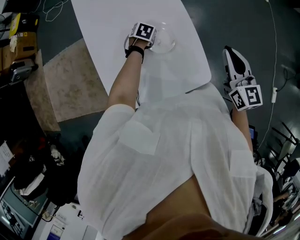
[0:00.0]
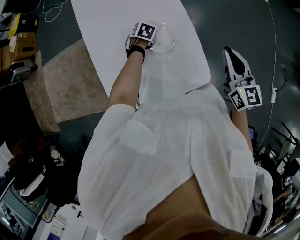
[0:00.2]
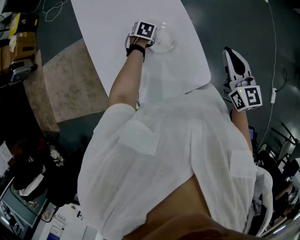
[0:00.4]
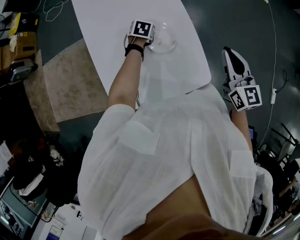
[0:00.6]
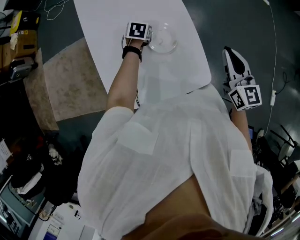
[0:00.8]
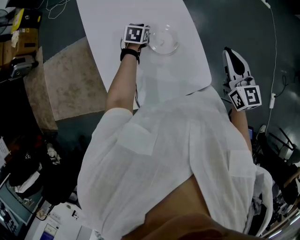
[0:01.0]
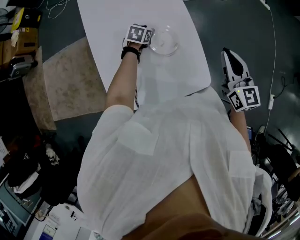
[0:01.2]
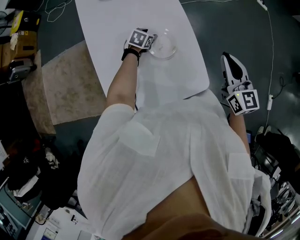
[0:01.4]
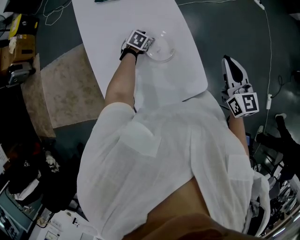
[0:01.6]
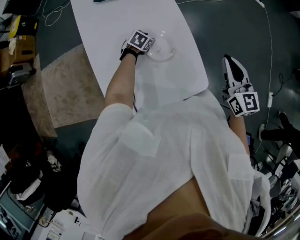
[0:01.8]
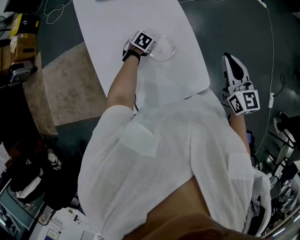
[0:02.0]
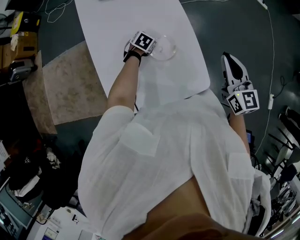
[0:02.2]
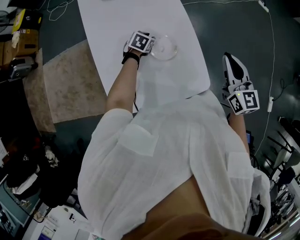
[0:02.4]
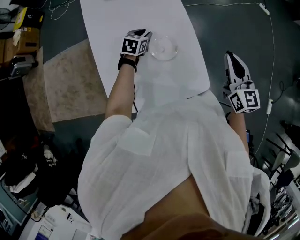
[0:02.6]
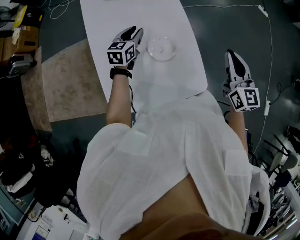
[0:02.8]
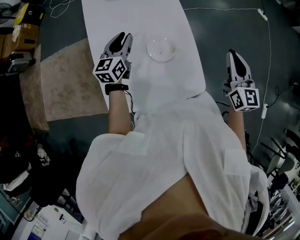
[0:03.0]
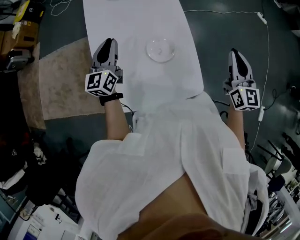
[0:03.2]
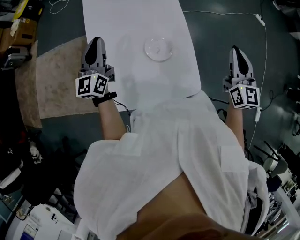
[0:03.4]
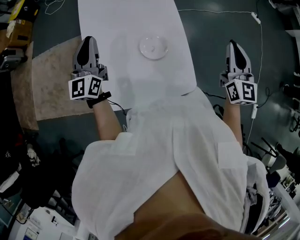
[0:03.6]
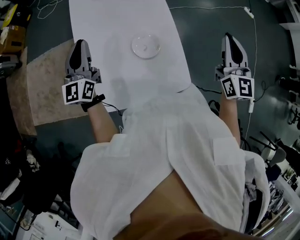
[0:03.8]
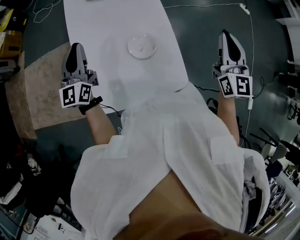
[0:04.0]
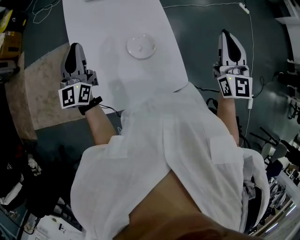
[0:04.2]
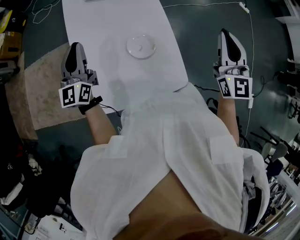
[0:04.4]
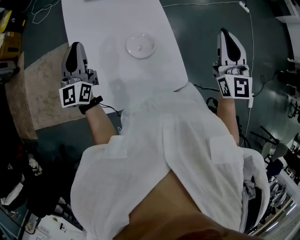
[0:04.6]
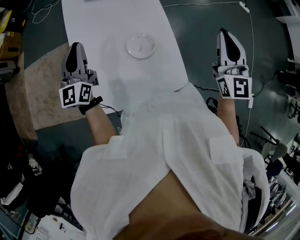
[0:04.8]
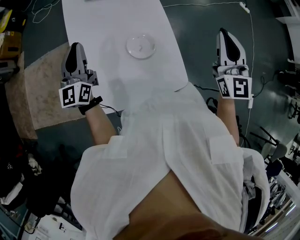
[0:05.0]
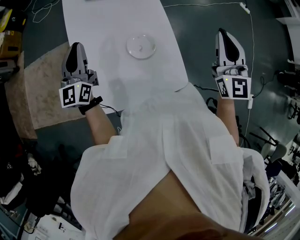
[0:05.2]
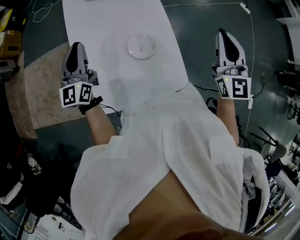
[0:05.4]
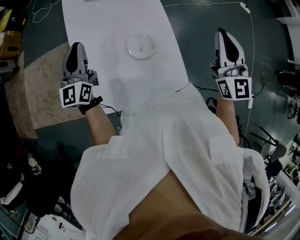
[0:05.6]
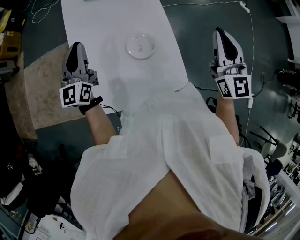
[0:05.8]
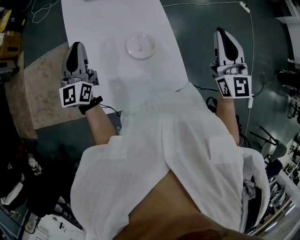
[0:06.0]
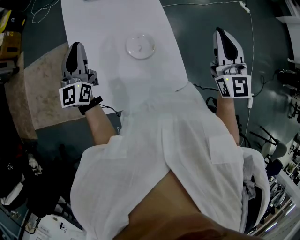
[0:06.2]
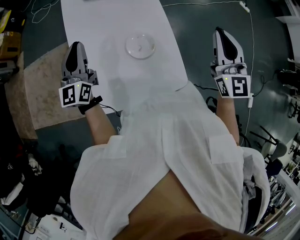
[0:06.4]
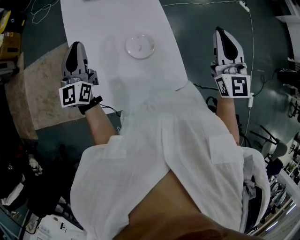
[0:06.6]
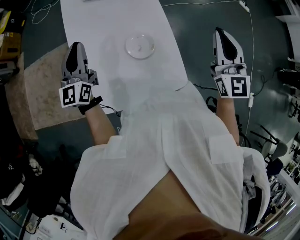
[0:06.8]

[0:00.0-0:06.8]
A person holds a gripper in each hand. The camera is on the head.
0:00.0 to 0:01.4: The left gripper opens its fingers.
0:01.4 to 0:02.8: The left gripper is displaced upward by approximately 15 cm, rotates roughly 30 degrees, and closes.
0:02.8 to 0:04.0: The left gripper heads upward, to the left and backward, covering approximately 25 cm, tips its fingers upward by about 30 degrees, and closes up; the right gripper heads upward, covering some 10 cm.
0:04.0 to 0:06.8: The grippers move only a little.

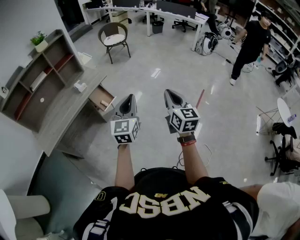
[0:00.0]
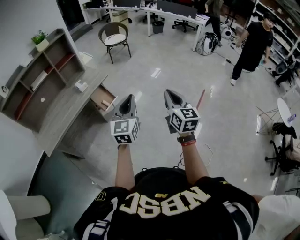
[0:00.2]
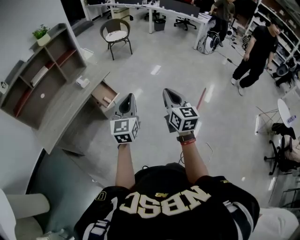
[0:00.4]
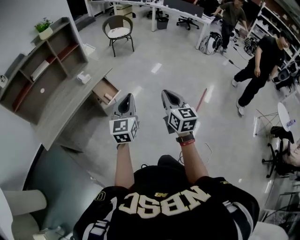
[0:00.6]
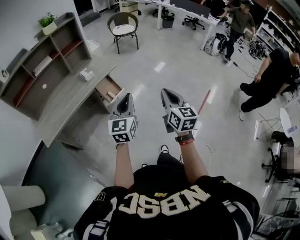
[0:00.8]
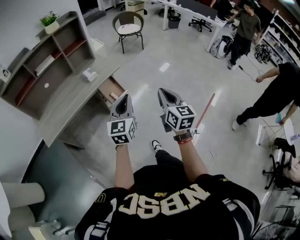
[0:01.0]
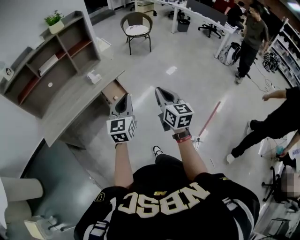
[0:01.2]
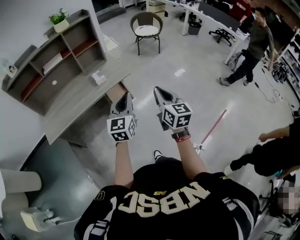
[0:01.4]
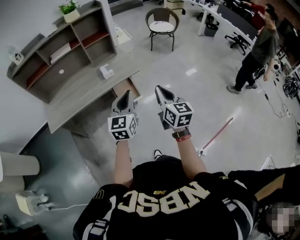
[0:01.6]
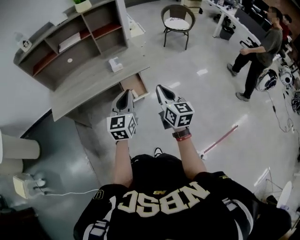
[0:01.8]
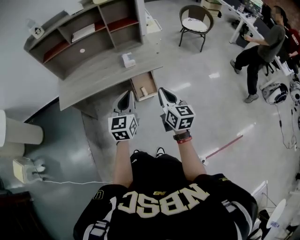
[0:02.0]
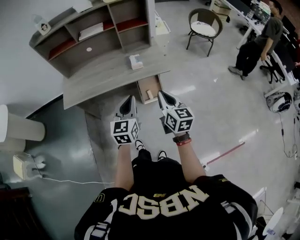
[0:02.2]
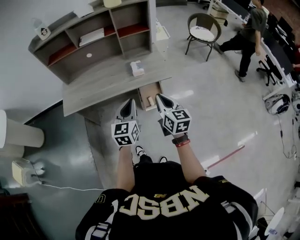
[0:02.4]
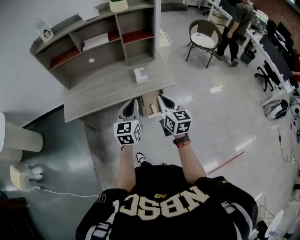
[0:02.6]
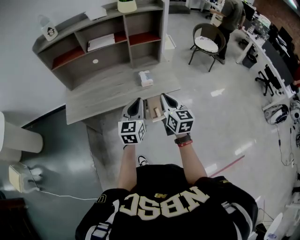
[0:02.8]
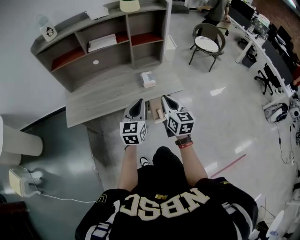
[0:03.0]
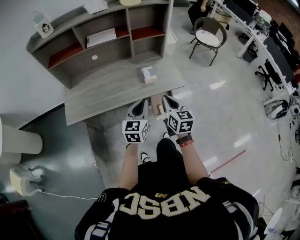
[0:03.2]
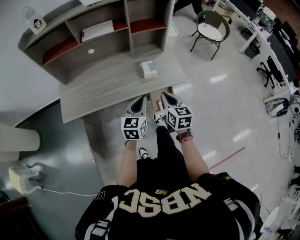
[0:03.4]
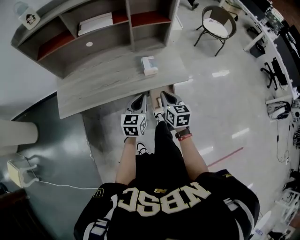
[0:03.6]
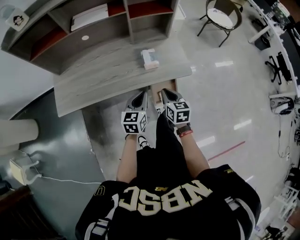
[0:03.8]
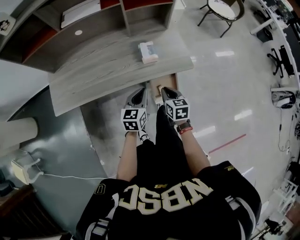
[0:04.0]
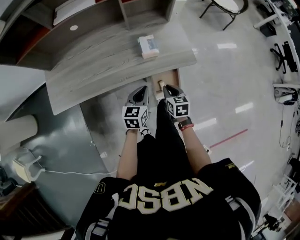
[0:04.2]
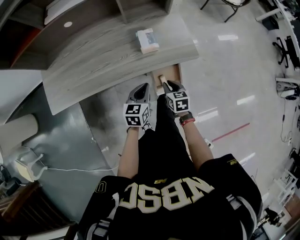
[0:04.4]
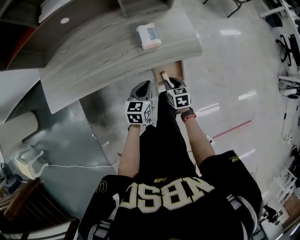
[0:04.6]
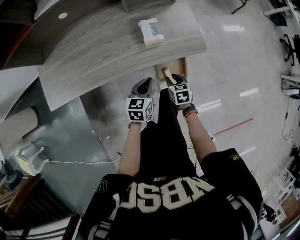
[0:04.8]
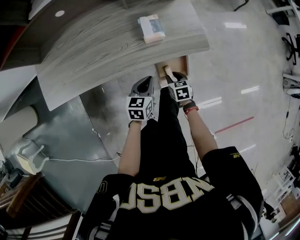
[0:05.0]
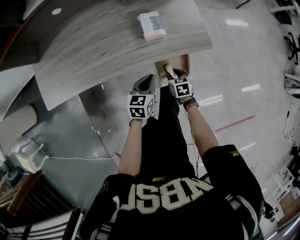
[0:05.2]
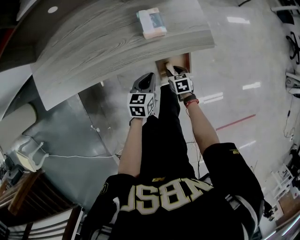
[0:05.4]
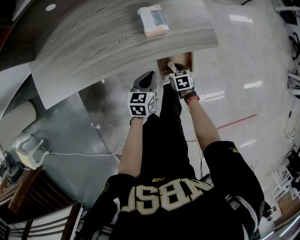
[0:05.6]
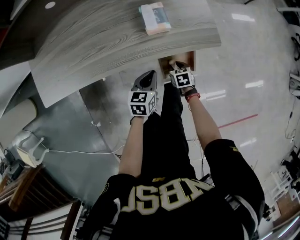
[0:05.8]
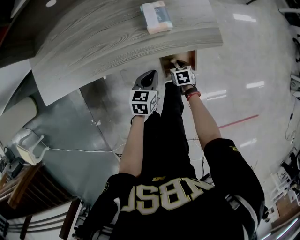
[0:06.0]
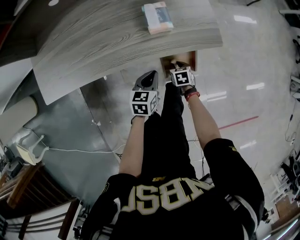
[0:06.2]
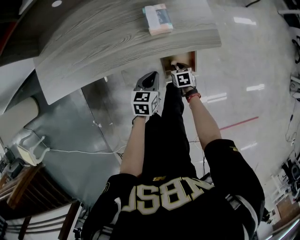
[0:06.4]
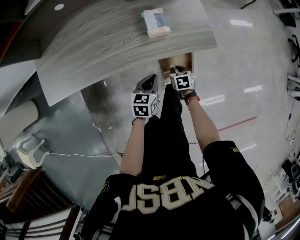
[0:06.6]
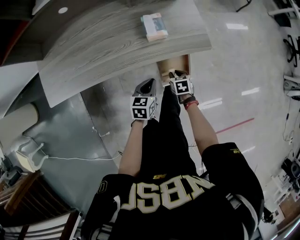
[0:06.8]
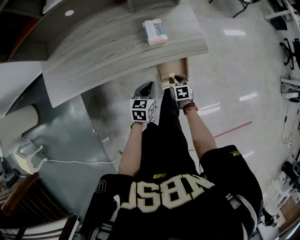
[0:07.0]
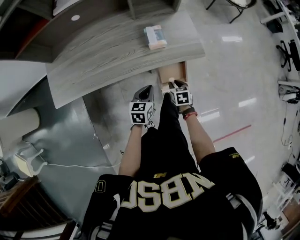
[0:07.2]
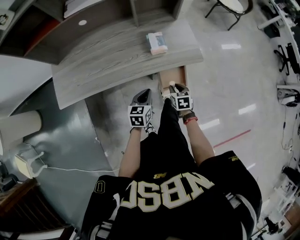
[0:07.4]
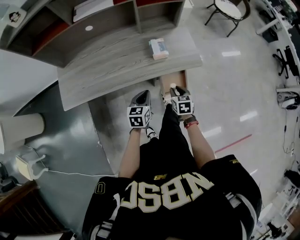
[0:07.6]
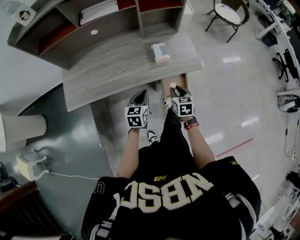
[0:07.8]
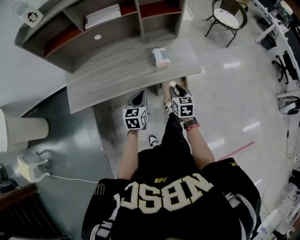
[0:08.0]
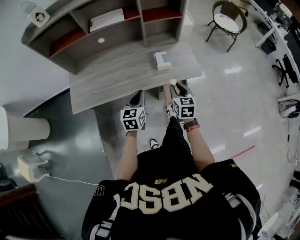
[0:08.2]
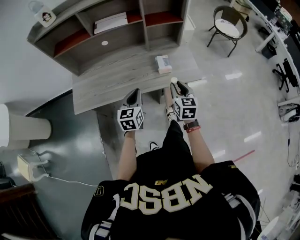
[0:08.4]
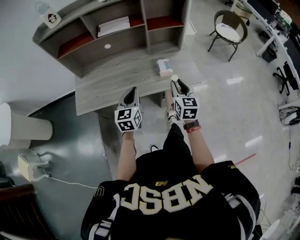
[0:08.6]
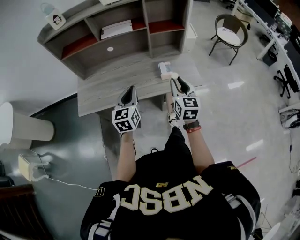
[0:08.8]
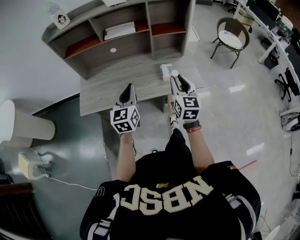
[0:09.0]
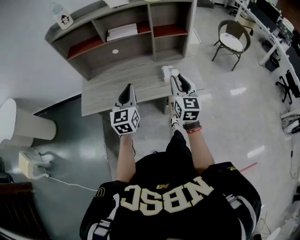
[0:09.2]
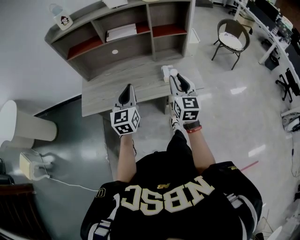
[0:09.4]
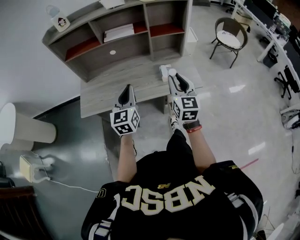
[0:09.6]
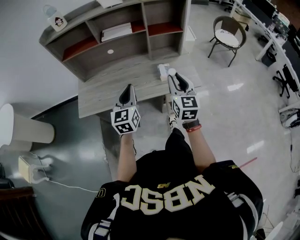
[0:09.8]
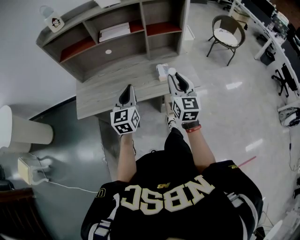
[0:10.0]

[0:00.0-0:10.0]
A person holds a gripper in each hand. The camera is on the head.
0:00.0 to 0:01.4: The two grippers go about 25 cm forward and to the left. The right gripper turns by about 20 degrees.
0:01.4 to 0:02.8: The grippers both shift forward and to the left by some 25 cm. The right gripper rotates some 20 degrees.
0:02.8 to 0:04.2: The right gripper travels downward by approximately 30 cm, and tips its fingers downward by some 30 degrees. The left gripper travels downward and forward by roughly 25 cm, and turns by some 20 degrees.
0:04.2 to 0:05.8: The left gripper shifts some 15 cm downward, while the right gripper is displaced downward by some 25 cm, turns by some 20 degrees, and opens.
0:05.8 to 0:07.2: The left gripper travels upward by about 5 cm, while the right gripper shifts approximately 15 cm upward.
0:07.2 to 0:08.6: The right gripper moves upward, about 35 cm, and tilts its fingers some 40 degrees upward; the left gripper heads upward and to the left, covering some 25 cm, and swivels roughly 30 degrees.
0:08.6 to 0:10.0: Both grippers travel together upward, roughly 10 cm.

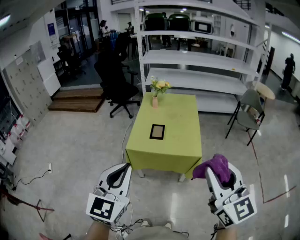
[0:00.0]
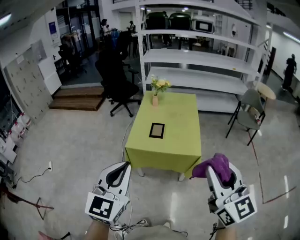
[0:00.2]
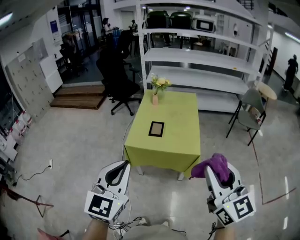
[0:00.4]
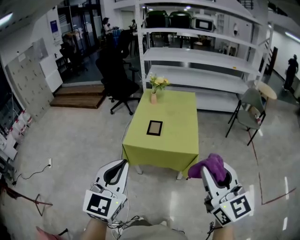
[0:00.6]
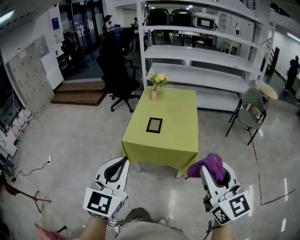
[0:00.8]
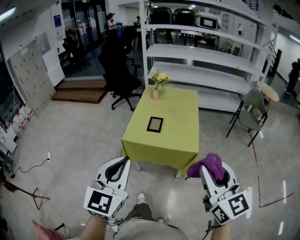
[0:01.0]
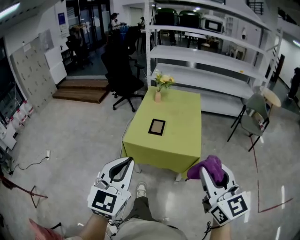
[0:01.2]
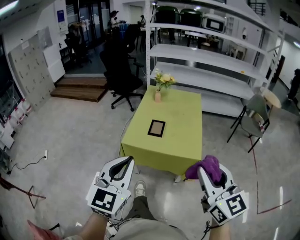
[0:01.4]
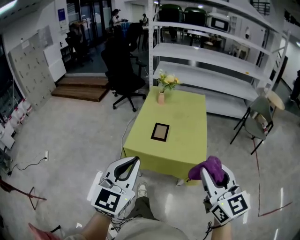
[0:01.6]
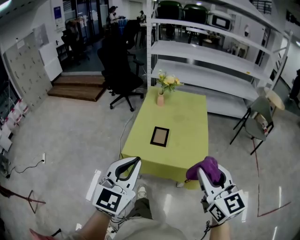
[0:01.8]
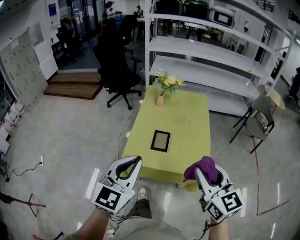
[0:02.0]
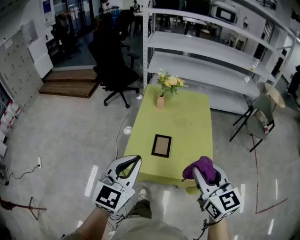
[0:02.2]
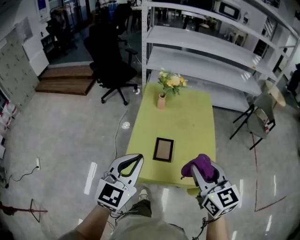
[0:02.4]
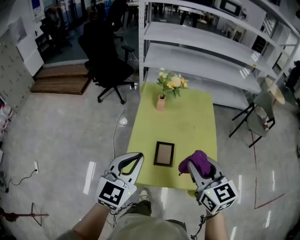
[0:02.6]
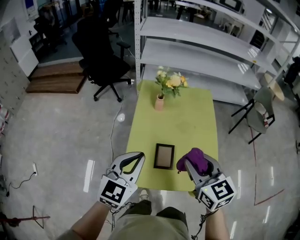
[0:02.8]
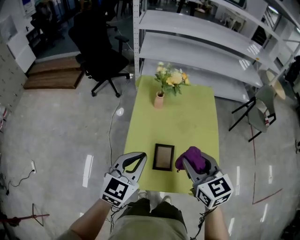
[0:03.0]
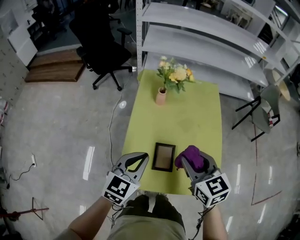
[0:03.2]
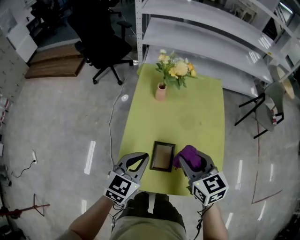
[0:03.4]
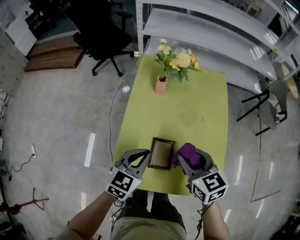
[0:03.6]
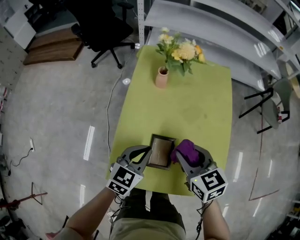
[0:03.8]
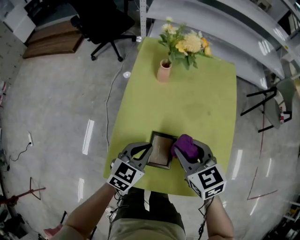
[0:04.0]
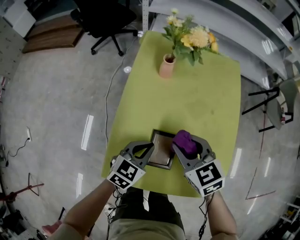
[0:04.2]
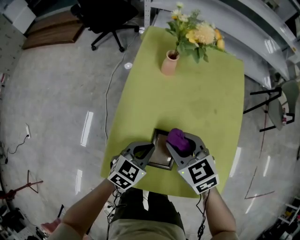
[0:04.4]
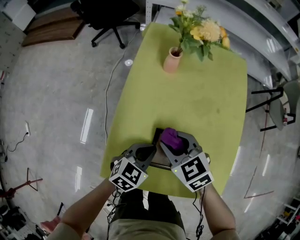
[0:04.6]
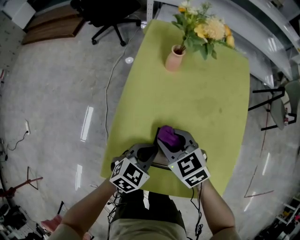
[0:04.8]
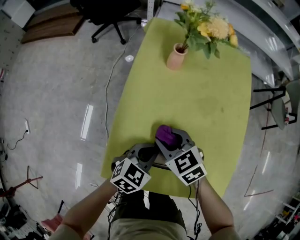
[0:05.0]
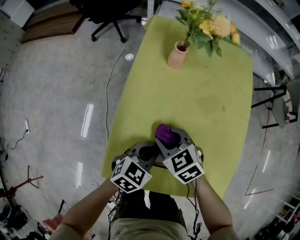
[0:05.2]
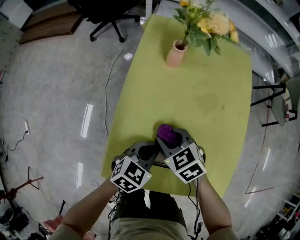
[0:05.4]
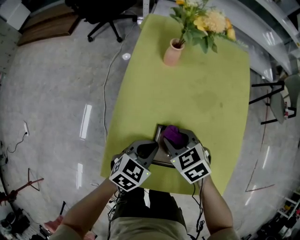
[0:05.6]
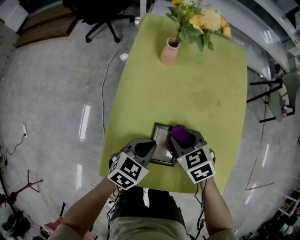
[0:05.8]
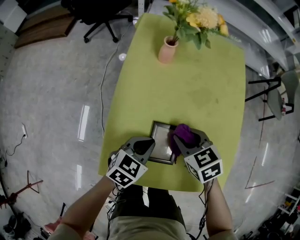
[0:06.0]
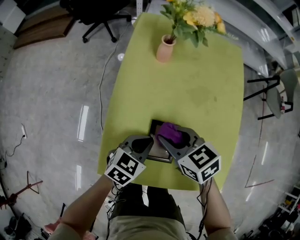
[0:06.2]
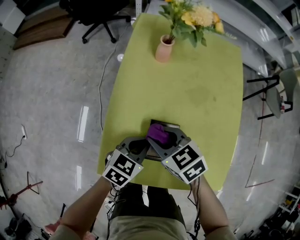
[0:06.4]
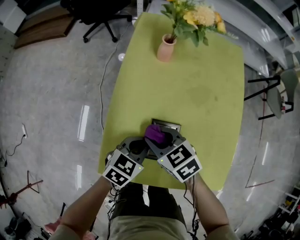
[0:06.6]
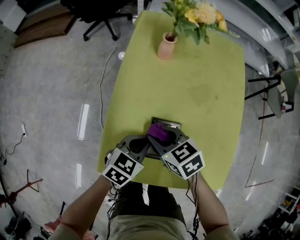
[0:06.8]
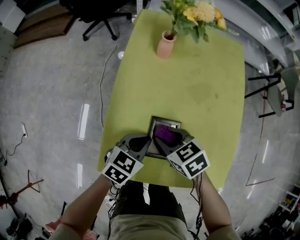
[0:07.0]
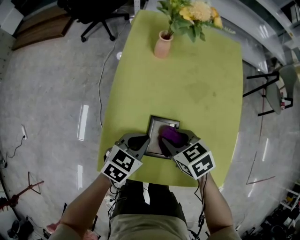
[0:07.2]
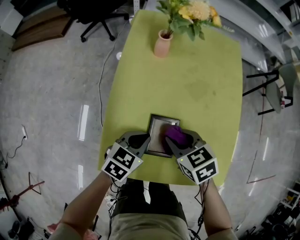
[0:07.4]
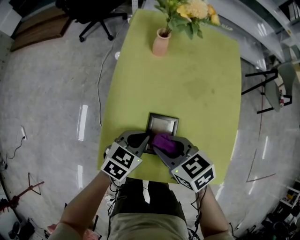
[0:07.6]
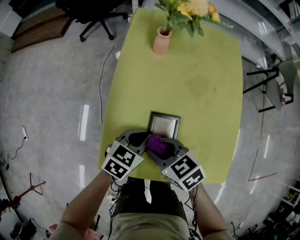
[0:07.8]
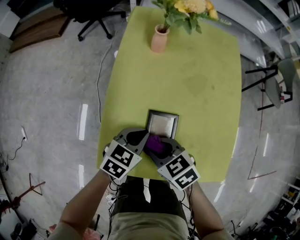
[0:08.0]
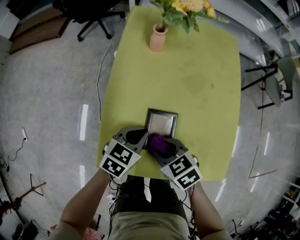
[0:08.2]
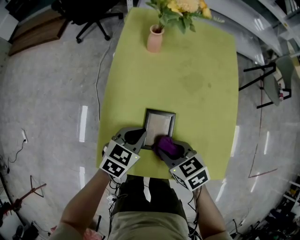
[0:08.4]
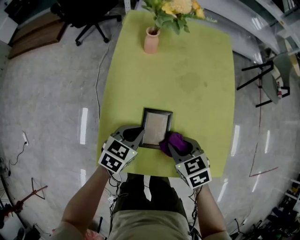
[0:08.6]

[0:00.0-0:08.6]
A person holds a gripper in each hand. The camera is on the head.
0:00.0 to 0:01.4: Both grippers travel together downward and forward, some 10 cm.
0:01.4 to 0:02.8: Both grippers are carried forward, some 50 cm. The right gripper rotates about 20 degrees. The left gripper rotates approximately 20 degrees.
0:02.8 to 0:04.4: The left gripper is displaced downward by approximately 30 cm, and rotates some 30 degrees. The right gripper shifts approximately 30 cm downward and forward, and changes its angle by approximately 30 degrees.
0:04.4 to 0:05.8: The right gripper is displaced downward by roughly 10 cm.
0:05.8 to 0:07.2: The right gripper travels to the left and back again, some 10 cm each way.
0:07.2 to 0:08.6: The right gripper shifts roughly 5 cm backward.
